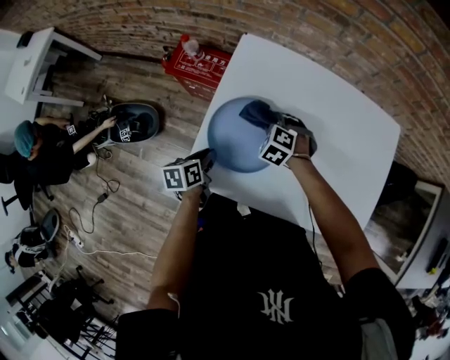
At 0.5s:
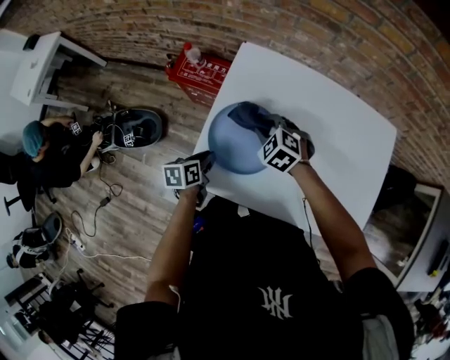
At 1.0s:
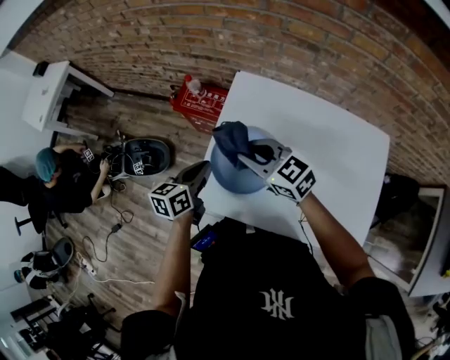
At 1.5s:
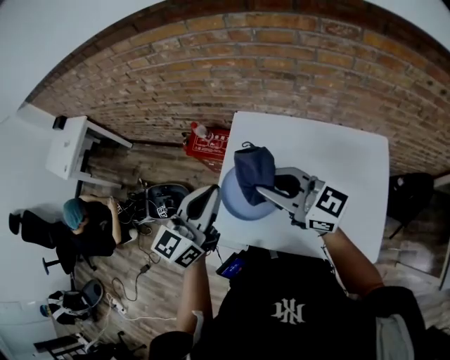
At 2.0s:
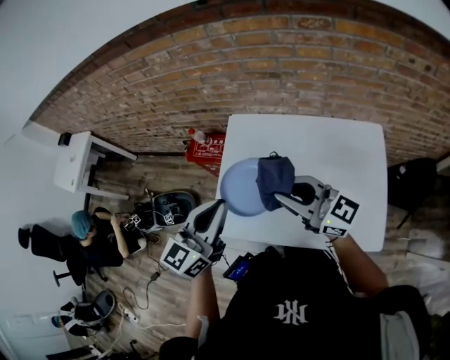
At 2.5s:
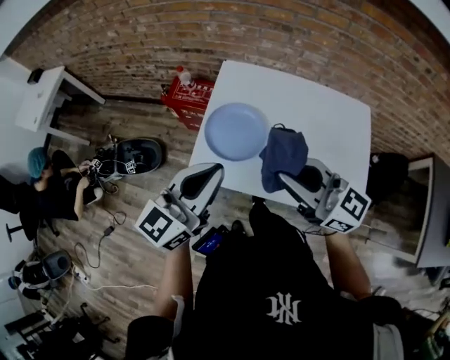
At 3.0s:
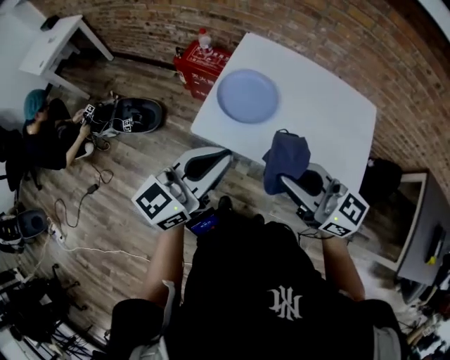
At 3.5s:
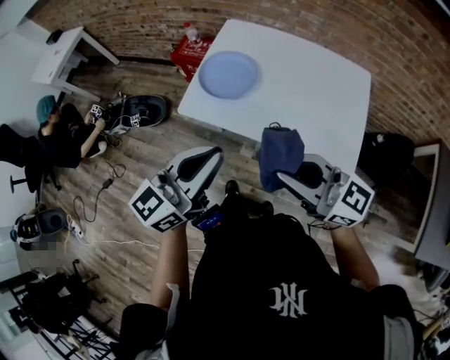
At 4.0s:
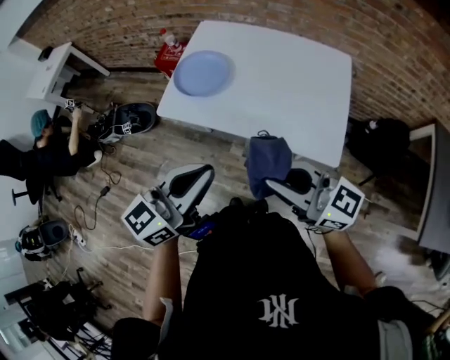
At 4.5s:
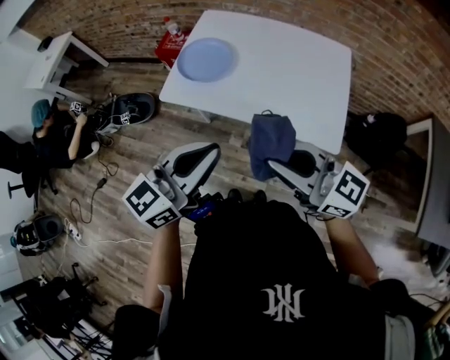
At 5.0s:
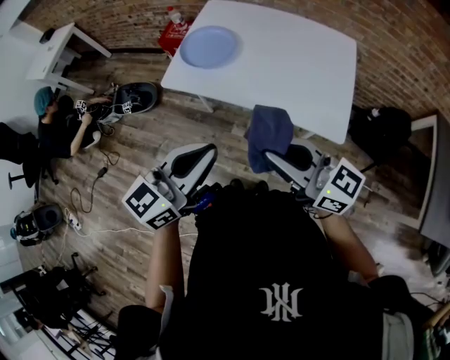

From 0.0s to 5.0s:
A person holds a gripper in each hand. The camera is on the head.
From 0.0s to 2.5s: The left gripper heads upward, covering roughly 35 cm, and points its fingers approximately 50 degrees further upward. The right gripper is displaced upward and backward by about 50 cm, and angles its fingers upward, by approximately 70 degrees.
From 2.5s to 5.0s: The two grippers go approximately 30 cm backward.

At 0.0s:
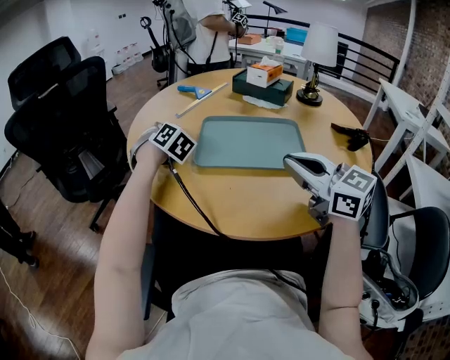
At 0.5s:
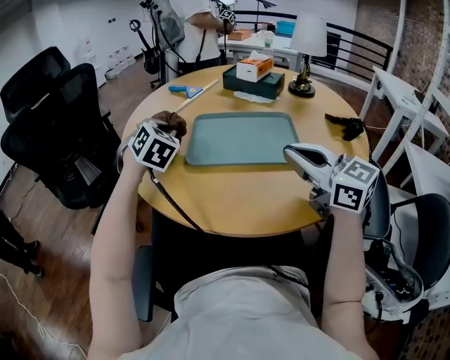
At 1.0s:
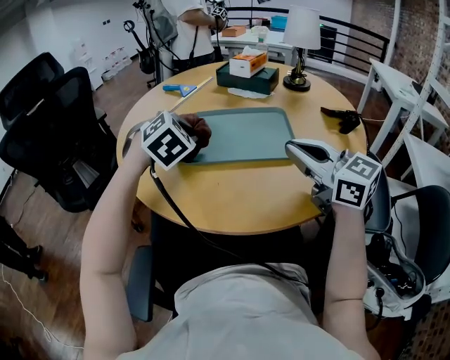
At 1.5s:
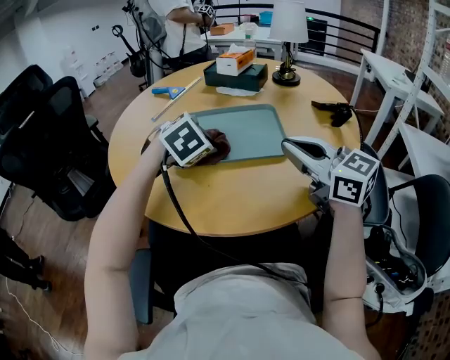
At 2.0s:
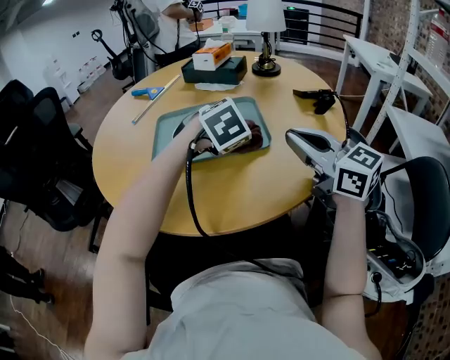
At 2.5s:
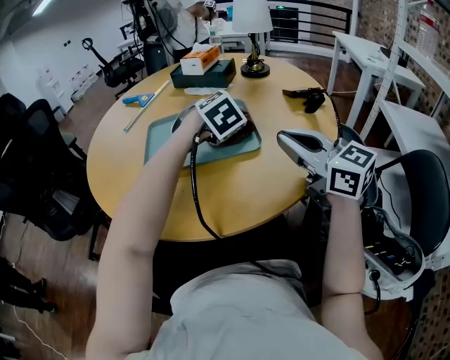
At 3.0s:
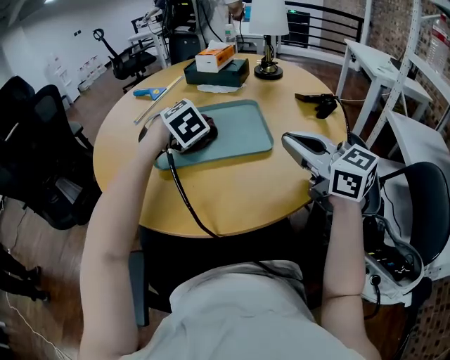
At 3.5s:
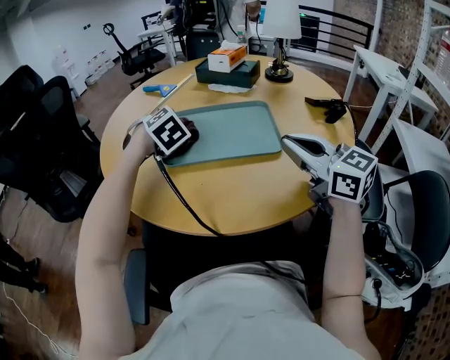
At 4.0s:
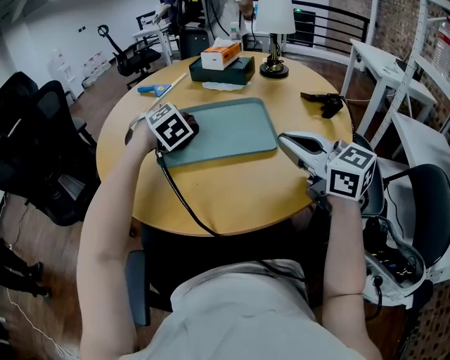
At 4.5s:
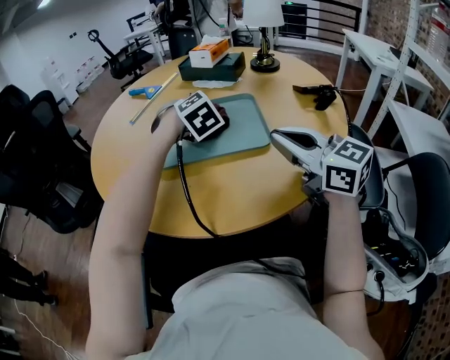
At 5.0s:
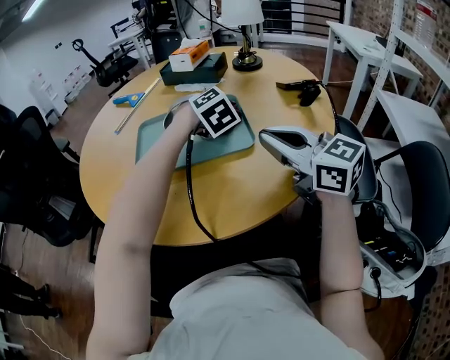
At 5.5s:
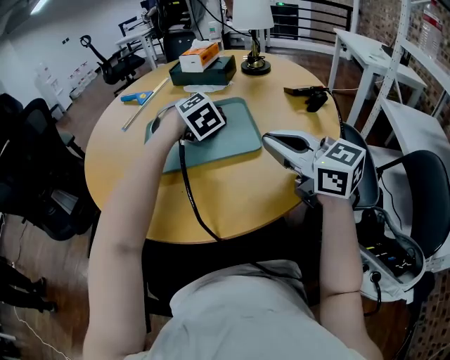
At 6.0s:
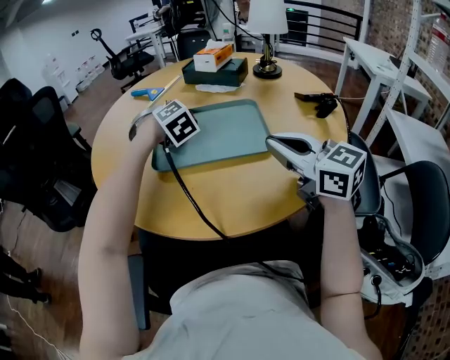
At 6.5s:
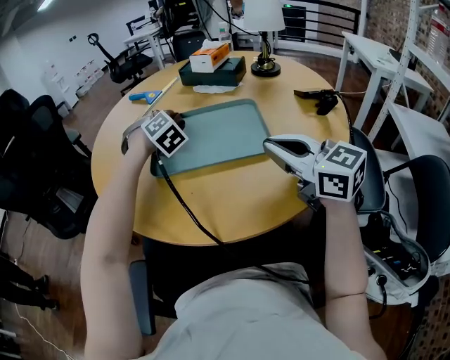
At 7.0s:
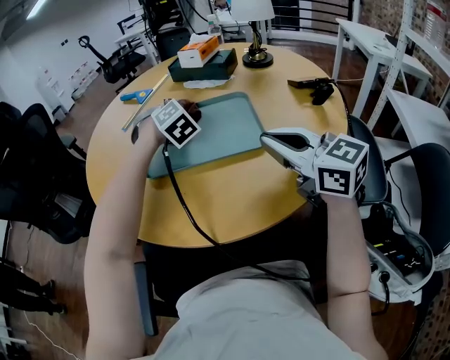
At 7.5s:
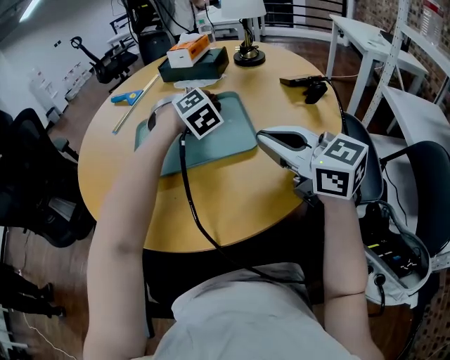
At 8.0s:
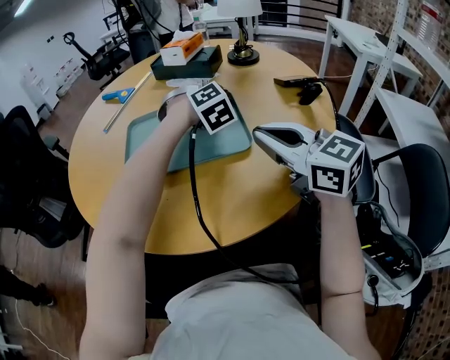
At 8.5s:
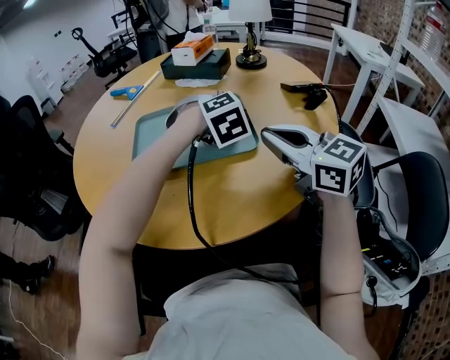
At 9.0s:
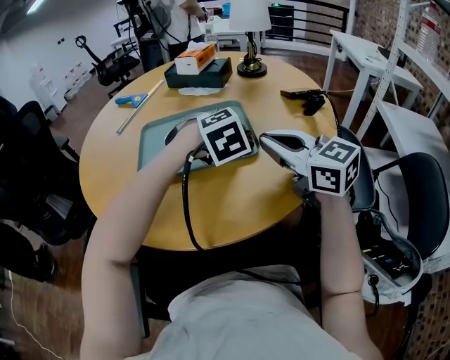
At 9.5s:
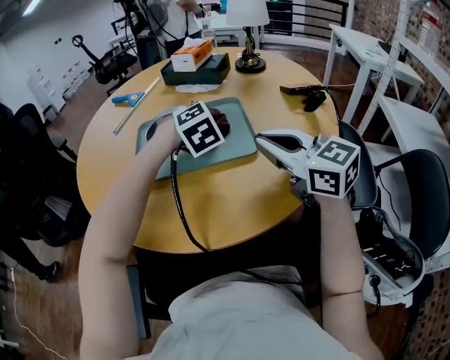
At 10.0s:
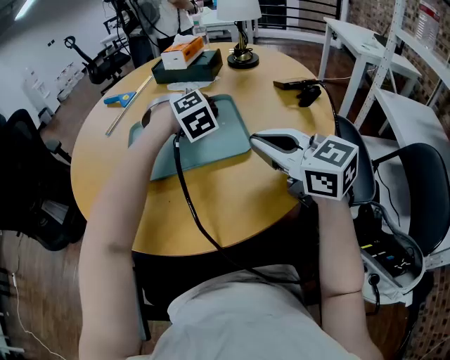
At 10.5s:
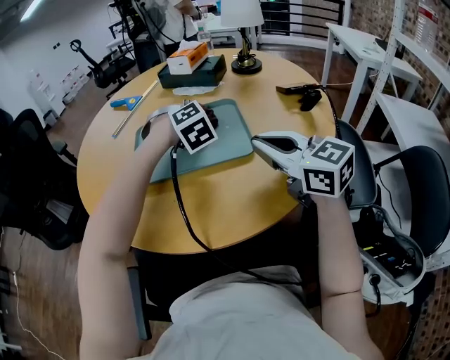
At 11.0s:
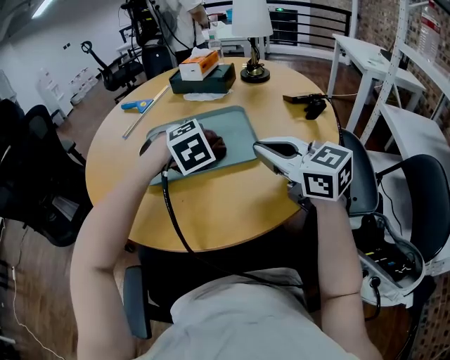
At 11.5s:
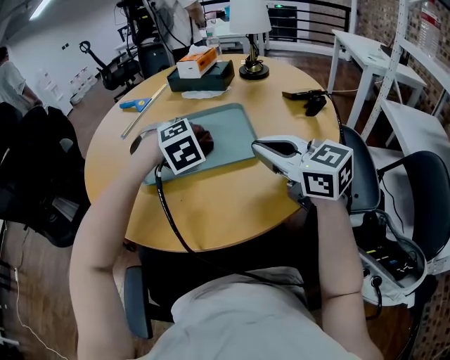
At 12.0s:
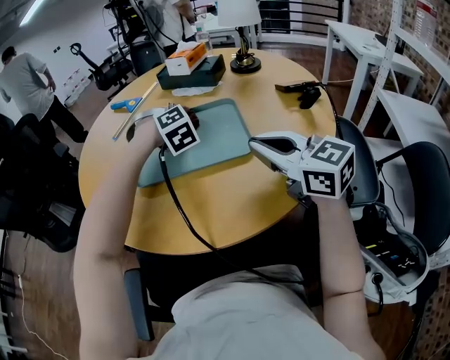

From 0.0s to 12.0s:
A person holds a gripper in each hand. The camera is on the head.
From 0.0s to 2.0s: The right gripper changes place by approximately 10 cm; the left gripper changes place by some 35 cm, and swivels about 50 degrees.
From 2.0s to 4.0s: The left gripper moves to the left and forward, some 20 cm, and swivels some 20 degrees.
From 4.0s to 6.0s: The left gripper goes to the right and returns, about 20 cm each way.
From 6.0s to 8.0s: The left gripper moves to the right, about 20 cm.
From 8.0s to 10.0s: The left gripper reaches about 15 cm backward, then returns.
From 10.0s to 12.0s: The left gripper shifts some 5 cm to the left, and reaches approximately 10 cm backward, then returns.

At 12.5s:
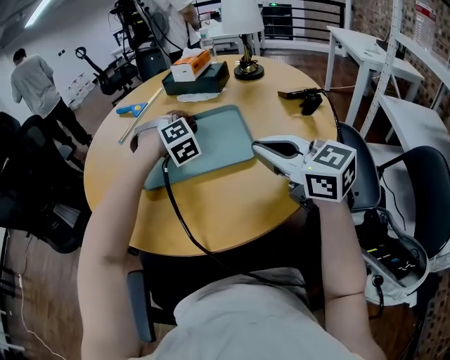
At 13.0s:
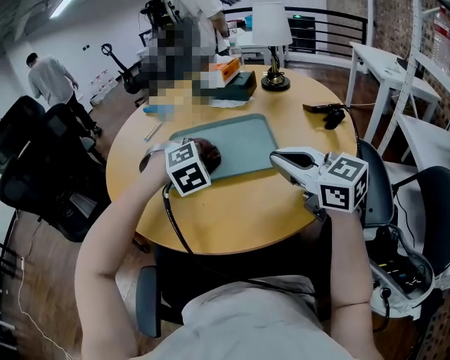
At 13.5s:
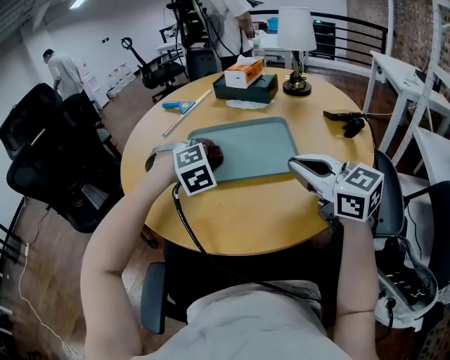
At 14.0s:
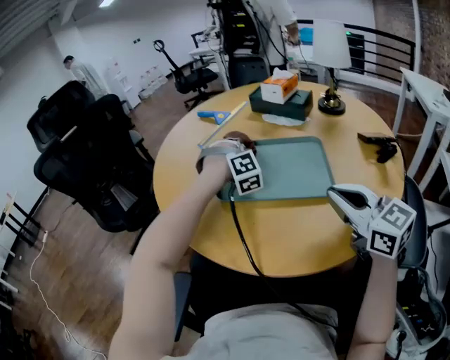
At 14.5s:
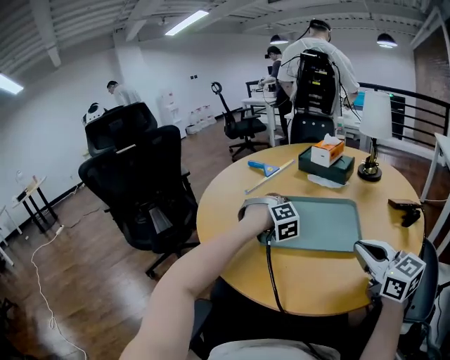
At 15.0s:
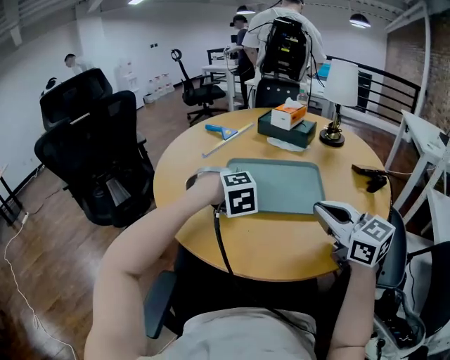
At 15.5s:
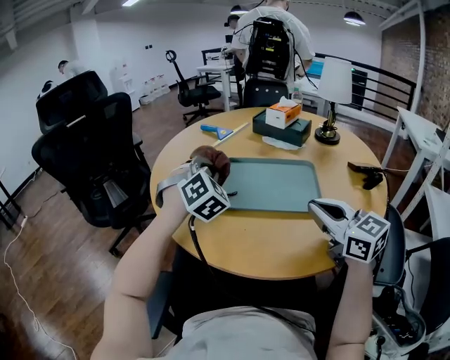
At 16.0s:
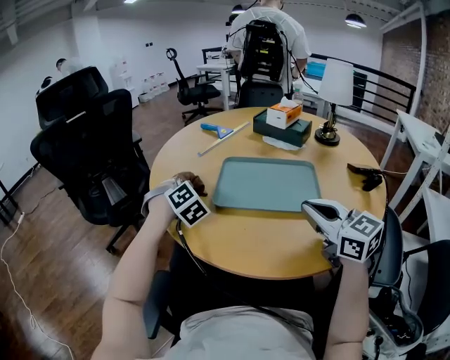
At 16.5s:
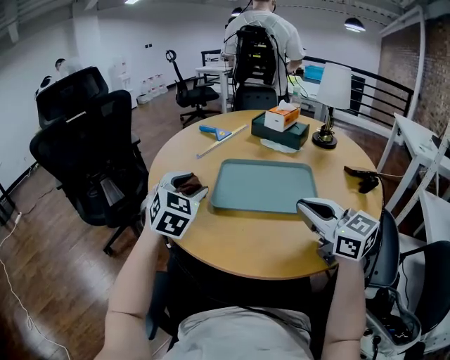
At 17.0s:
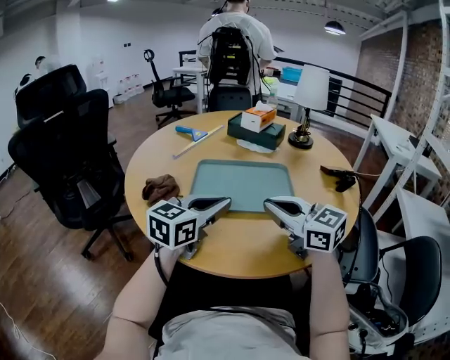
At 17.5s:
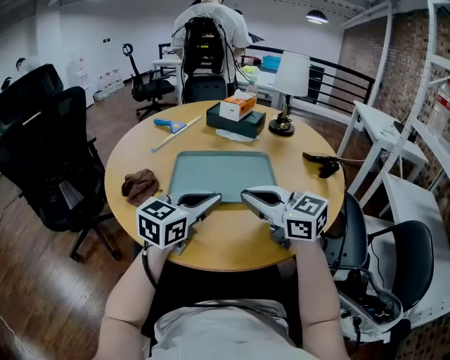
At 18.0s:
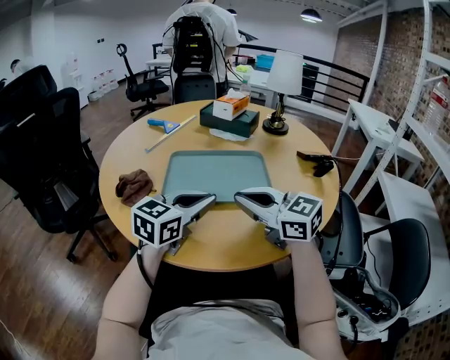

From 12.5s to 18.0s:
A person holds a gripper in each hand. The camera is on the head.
From 12.5s to 14.5s: The left gripper shifts approximately 10 cm to the left, and travels backward and back again, approximately 10 cm each way.
From 14.5s to 16.0s: The left gripper shifts about 15 cm to the left, and changes its angle by some 20 degrees.
From 16.0s to 18.0s: The left gripper changes place by some 25 cm, and rotates some 80 degrees.

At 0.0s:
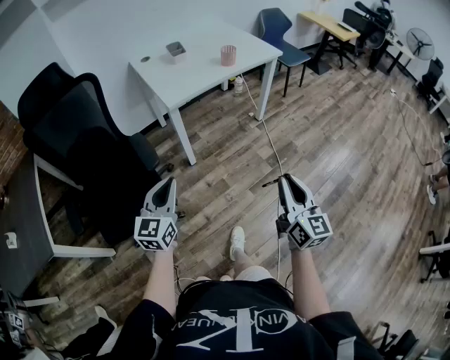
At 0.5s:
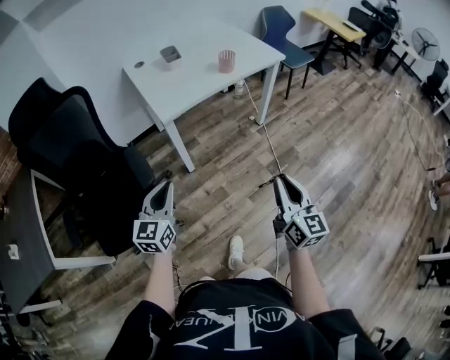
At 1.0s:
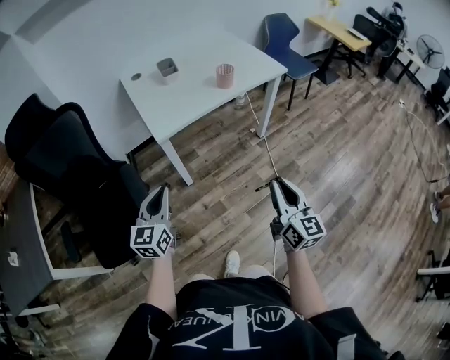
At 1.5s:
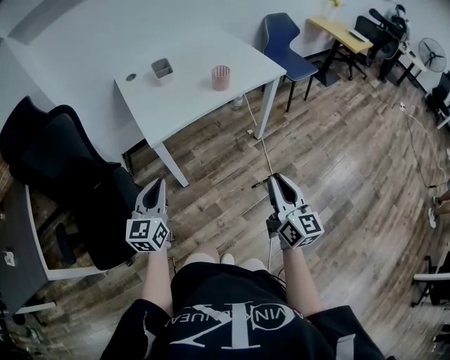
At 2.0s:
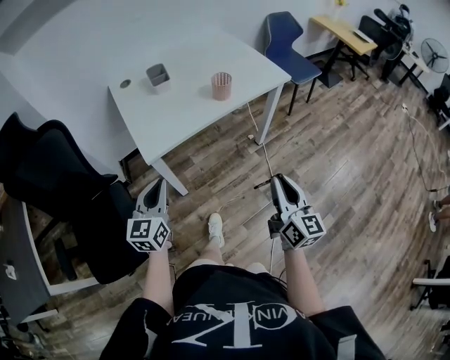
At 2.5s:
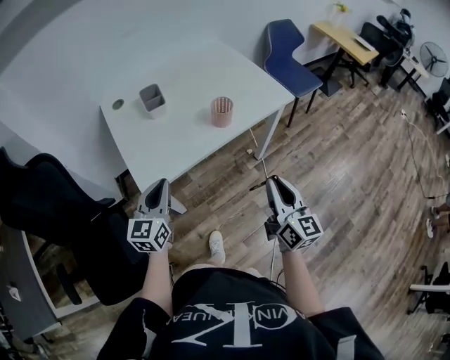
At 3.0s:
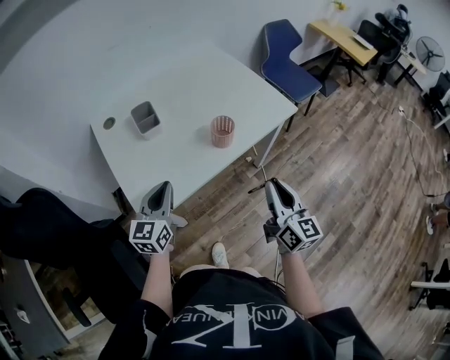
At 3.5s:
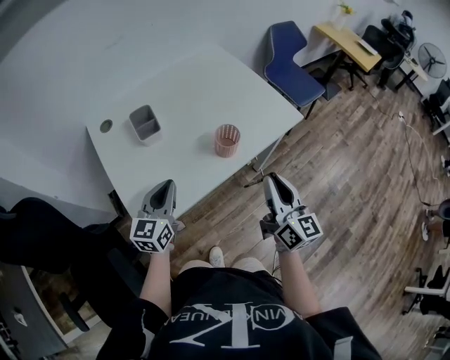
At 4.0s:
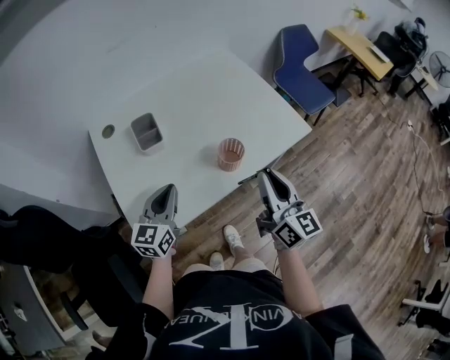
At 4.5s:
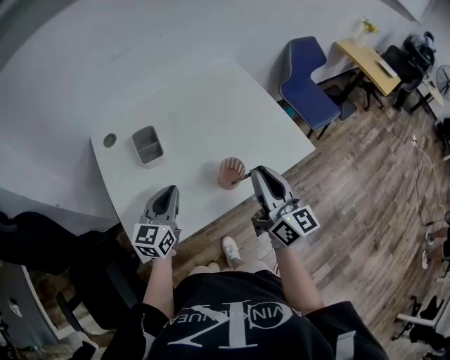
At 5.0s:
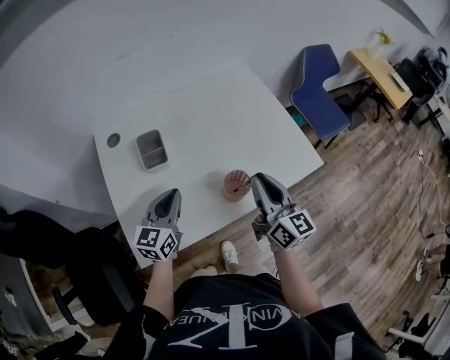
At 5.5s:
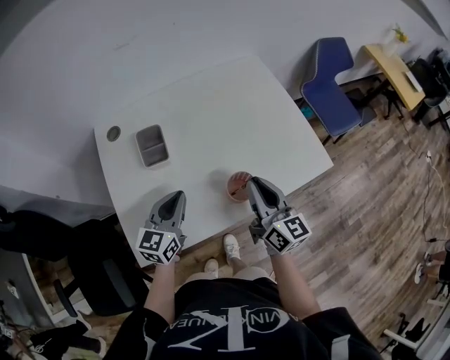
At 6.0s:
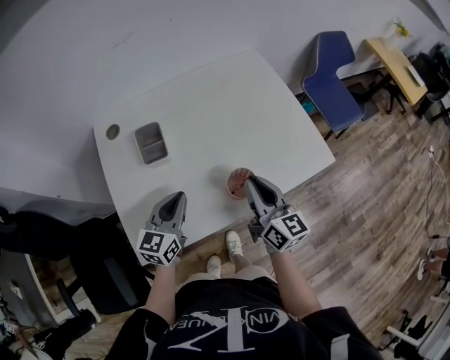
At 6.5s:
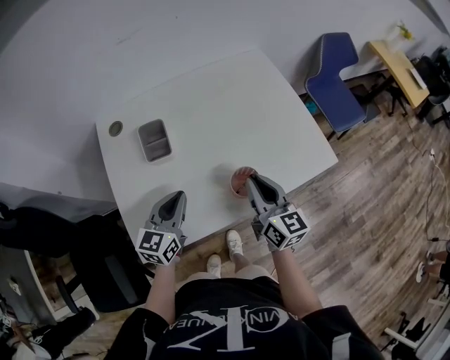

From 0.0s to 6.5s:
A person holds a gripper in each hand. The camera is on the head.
From 0.0s to 2.0s: The two grippers go about 30 cm forward.
From 2.0s to 4.5s: The grippers both shift forward by about 40 cm.
From 4.5s to 6.5s: The right gripper shifts roughly 10 cm downward and forward.
